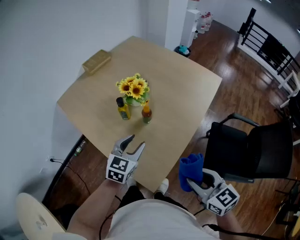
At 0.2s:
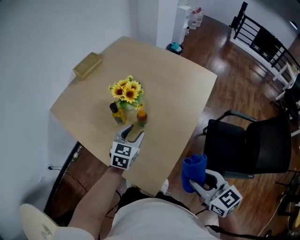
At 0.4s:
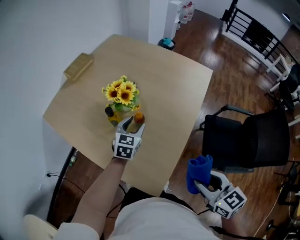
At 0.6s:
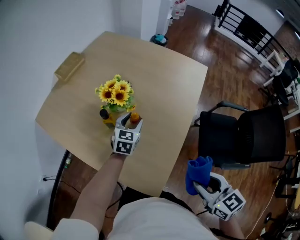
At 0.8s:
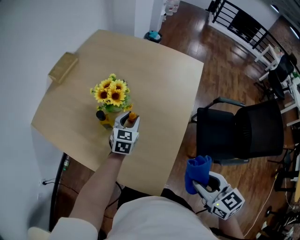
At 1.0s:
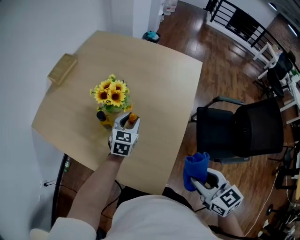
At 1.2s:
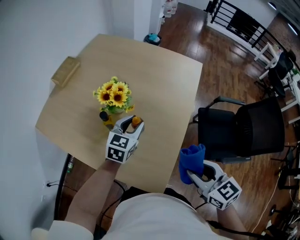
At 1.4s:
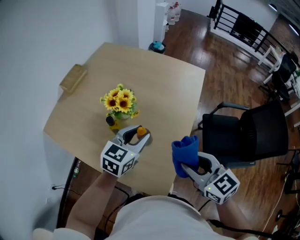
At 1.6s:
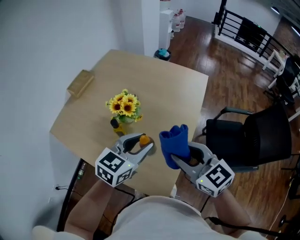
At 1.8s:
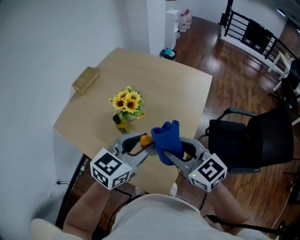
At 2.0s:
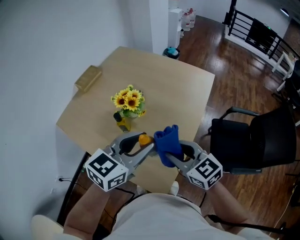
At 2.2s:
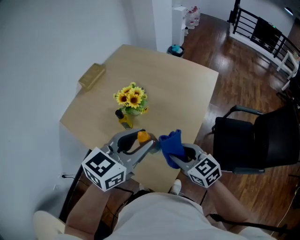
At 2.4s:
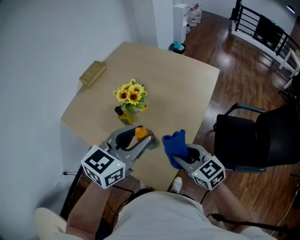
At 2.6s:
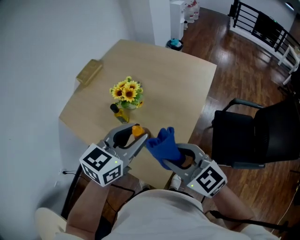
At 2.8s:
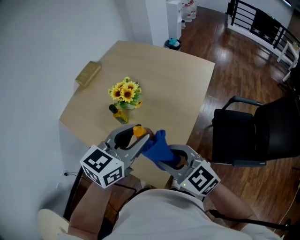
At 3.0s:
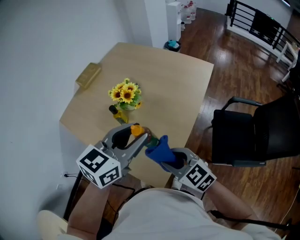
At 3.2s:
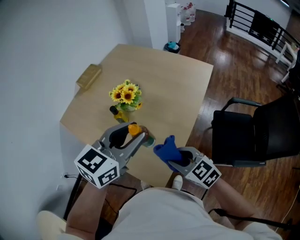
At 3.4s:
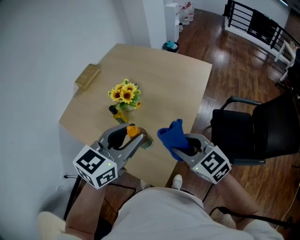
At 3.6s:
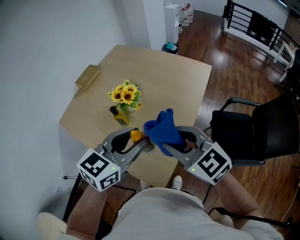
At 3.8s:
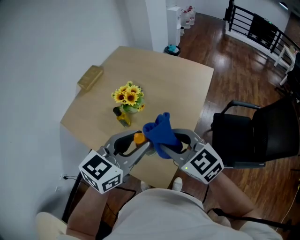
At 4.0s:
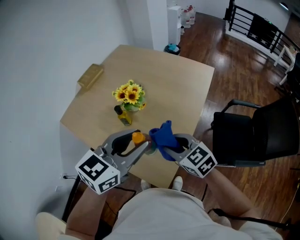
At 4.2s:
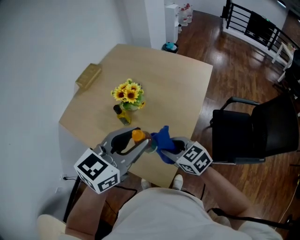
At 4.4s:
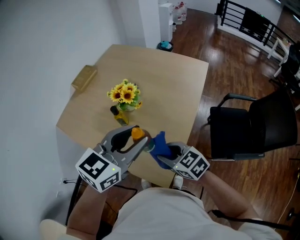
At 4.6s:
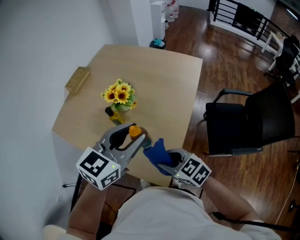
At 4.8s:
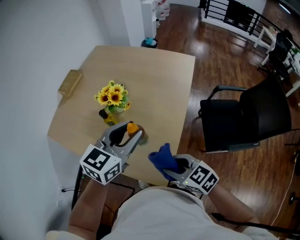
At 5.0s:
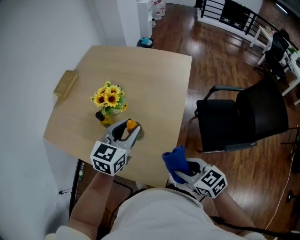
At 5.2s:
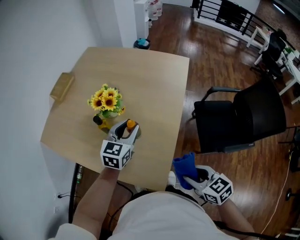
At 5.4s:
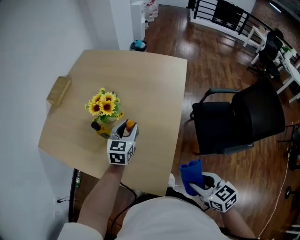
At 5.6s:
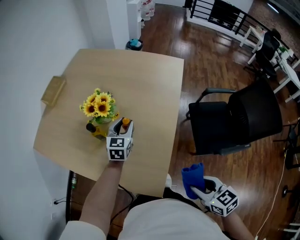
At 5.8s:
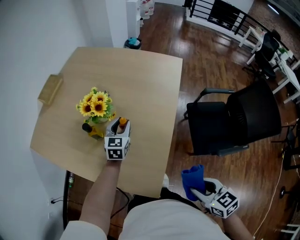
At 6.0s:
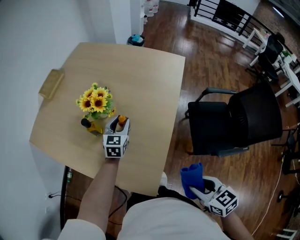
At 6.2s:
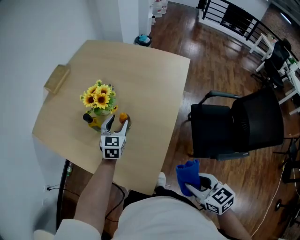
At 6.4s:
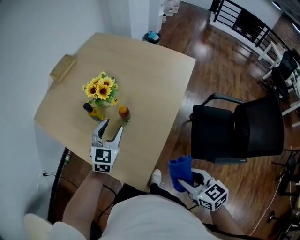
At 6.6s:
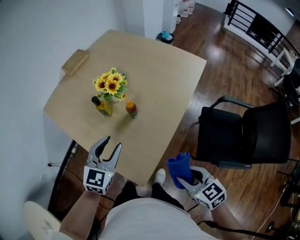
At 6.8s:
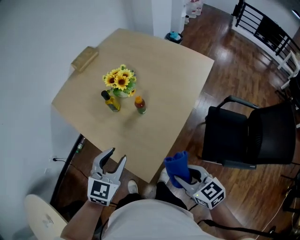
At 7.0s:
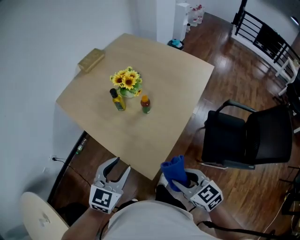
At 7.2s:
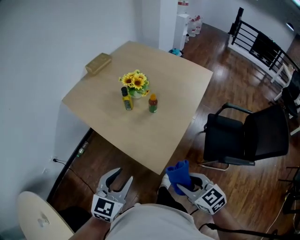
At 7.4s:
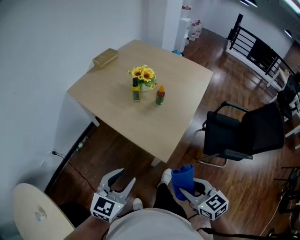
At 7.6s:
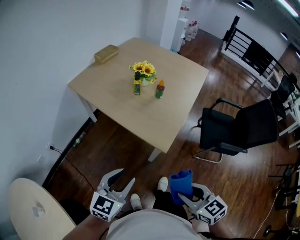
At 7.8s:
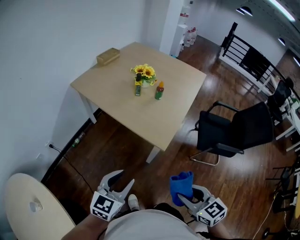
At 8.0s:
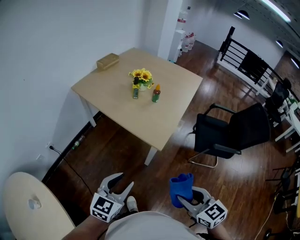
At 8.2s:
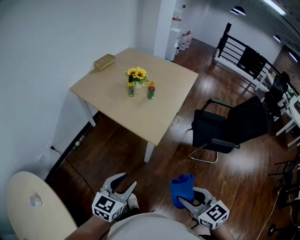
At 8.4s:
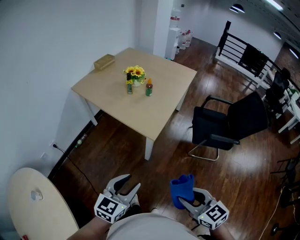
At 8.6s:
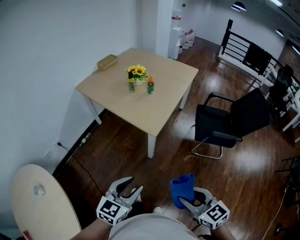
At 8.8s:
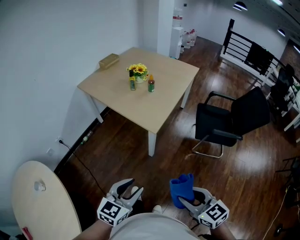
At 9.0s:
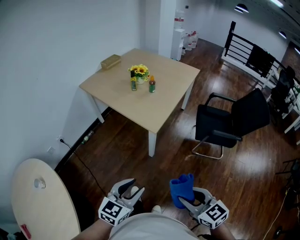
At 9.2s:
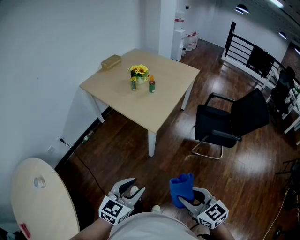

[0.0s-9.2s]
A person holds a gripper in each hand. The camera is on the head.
0.0s to 1.6s: The left gripper shifts about 10 cm upward, and turns by some 30 degrees. Meanwhile the right gripper moves forward, to the left and upward, some 20 cm.
1.6s to 3.0s: The right gripper swings up and down, some 10 cm each way, with 2 reversals. Meanwhile the left gripper is displaced upward and backward by approximately 10 cm.
3.0s to 4.6s: The right gripper travels upward and back again, roughly 10 cm each way.
4.6s to 6.2s: The right gripper heads to the right and backward, covering about 20 cm, and rotates approximately 20 degrees, while the left gripper goes about 30 cm downward and forward, changes its angle by roughly 30 degrees, and opens up.
6.2s to 7.6s: The right gripper goes approximately 30 cm backward and to the left. Meanwhile the left gripper moves backward and to the left, some 60 cm.
7.6s to 9.2s: The left gripper goes approximately 25 cm backward and to the right; the right gripper shifts roughly 20 cm backward.

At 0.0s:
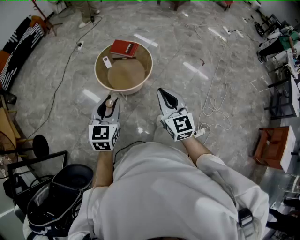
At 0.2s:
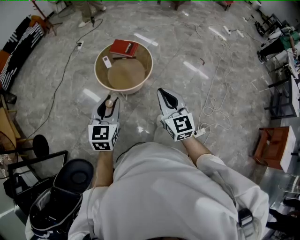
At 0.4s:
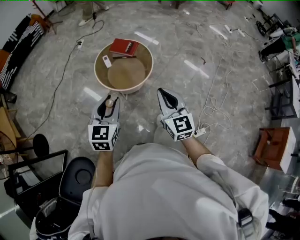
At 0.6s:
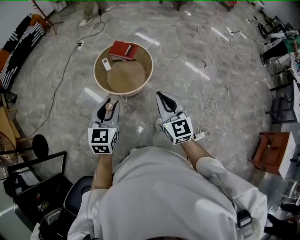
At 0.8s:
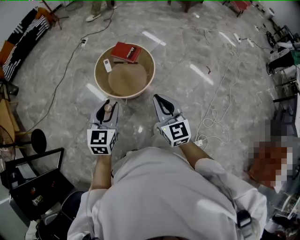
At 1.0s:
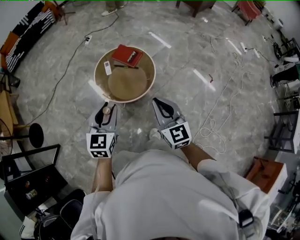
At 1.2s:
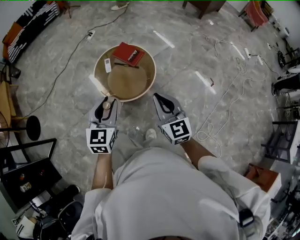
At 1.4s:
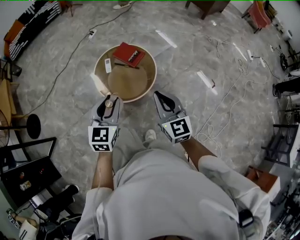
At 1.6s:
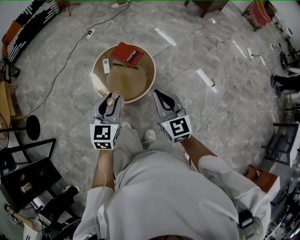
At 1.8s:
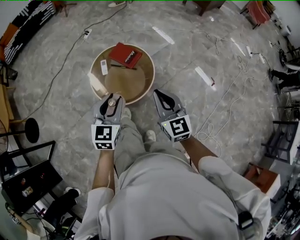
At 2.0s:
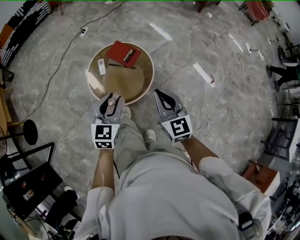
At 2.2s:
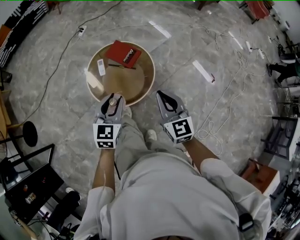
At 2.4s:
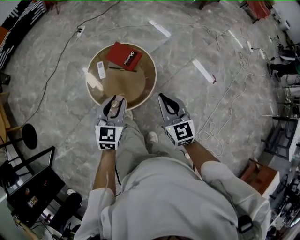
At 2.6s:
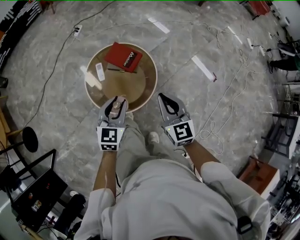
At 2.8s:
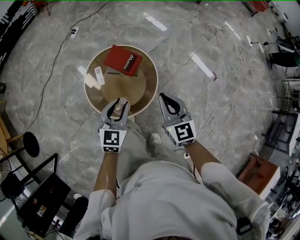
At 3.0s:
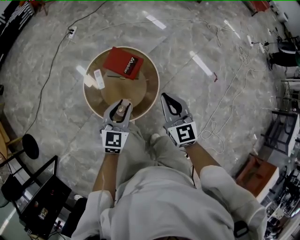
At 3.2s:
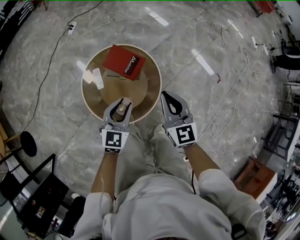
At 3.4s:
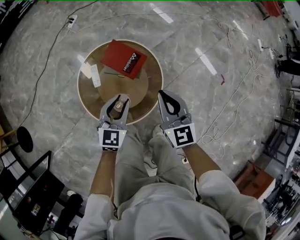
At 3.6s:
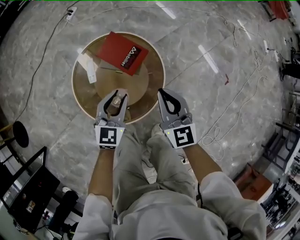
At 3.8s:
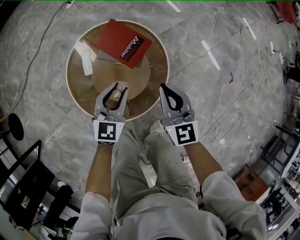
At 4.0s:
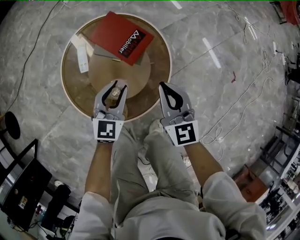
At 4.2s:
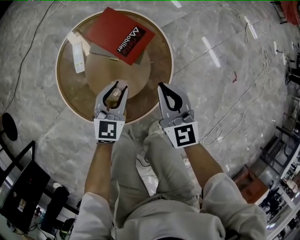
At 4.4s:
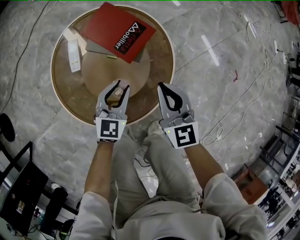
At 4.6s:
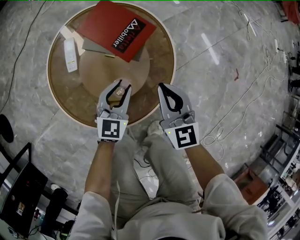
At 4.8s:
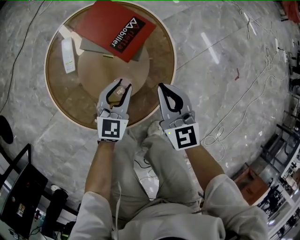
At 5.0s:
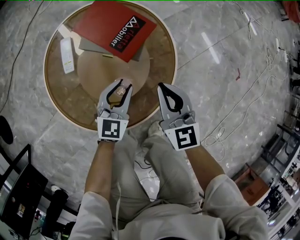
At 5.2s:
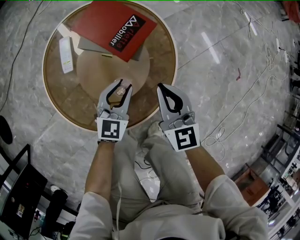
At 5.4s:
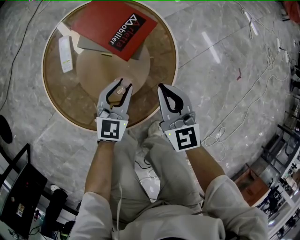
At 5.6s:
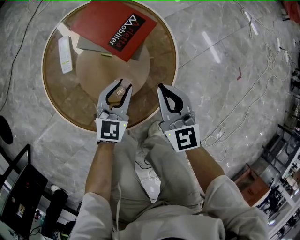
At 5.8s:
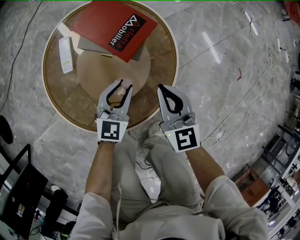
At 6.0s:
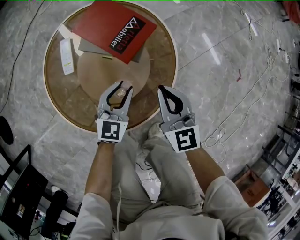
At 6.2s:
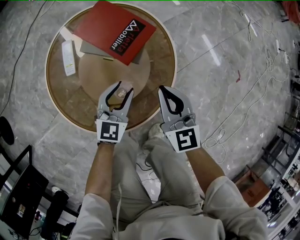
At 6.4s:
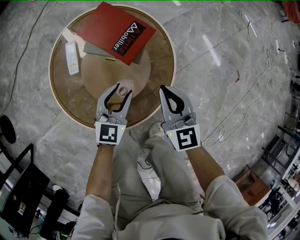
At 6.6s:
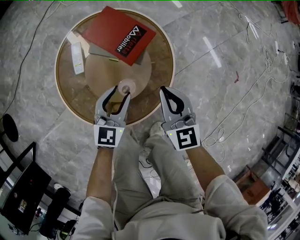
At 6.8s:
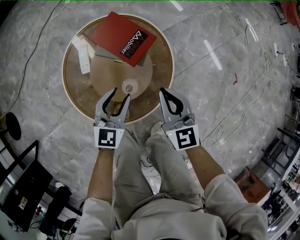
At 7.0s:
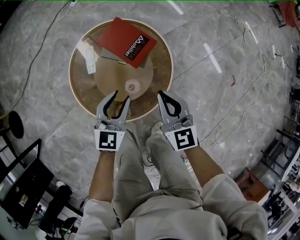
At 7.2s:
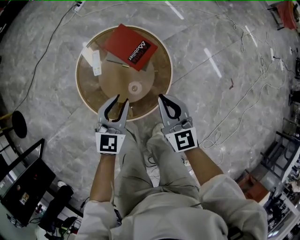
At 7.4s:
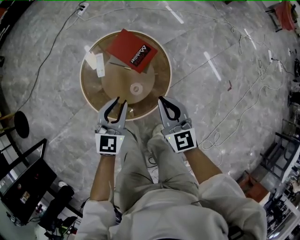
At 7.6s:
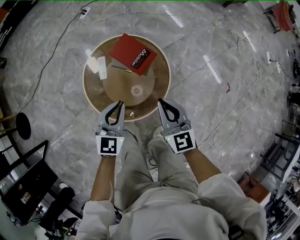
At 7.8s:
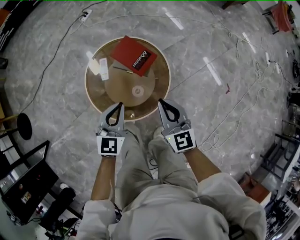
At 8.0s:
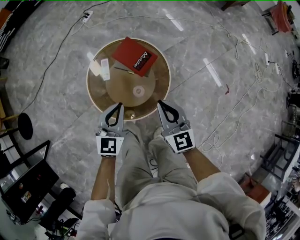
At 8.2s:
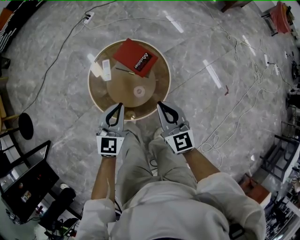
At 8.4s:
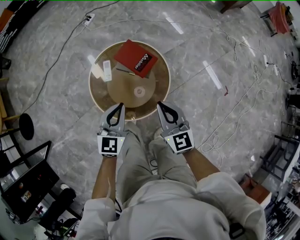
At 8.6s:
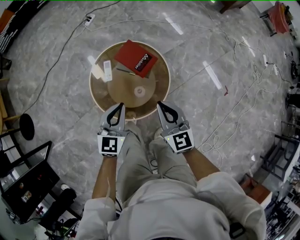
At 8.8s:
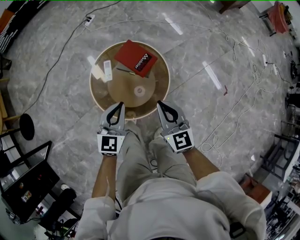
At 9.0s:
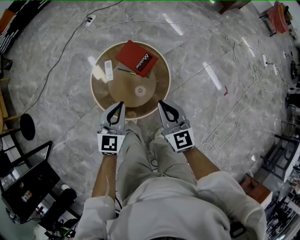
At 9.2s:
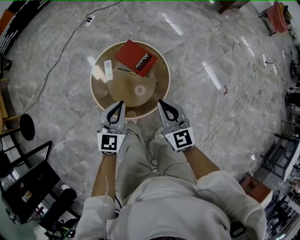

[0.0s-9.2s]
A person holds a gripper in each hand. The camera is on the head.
0.0s to 1.6s: Both grippers travel together forward and to the right, some 25 cm.
1.6s to 3.0s: The two grippers go roughly 25 cm forward and downward.
3.0s to 4.6s: The two grippers go roughly 35 cm downward.
4.6s to 6.2s: The grippers stay close to where they were, moving slightly.
6.2s to 7.6s: The grippers both shift upward by about 25 cm. The left gripper closes.
7.6s to 9.2s: The left gripper goes some 5 cm upward. The right gripper changes place by some 5 cm.

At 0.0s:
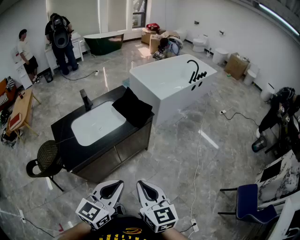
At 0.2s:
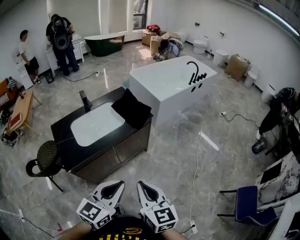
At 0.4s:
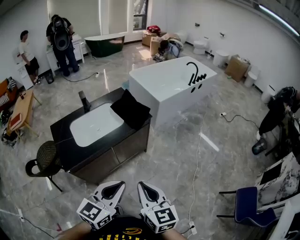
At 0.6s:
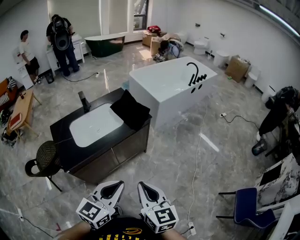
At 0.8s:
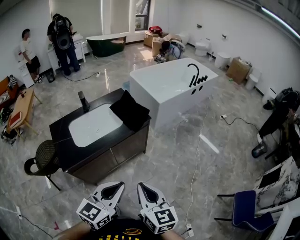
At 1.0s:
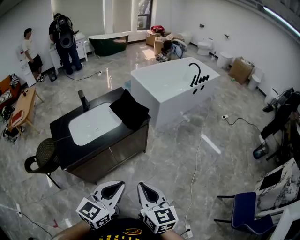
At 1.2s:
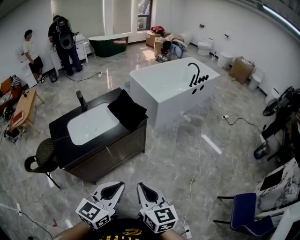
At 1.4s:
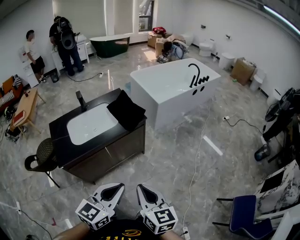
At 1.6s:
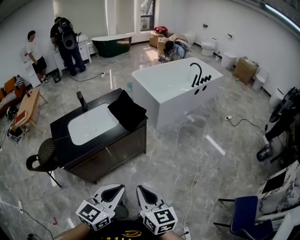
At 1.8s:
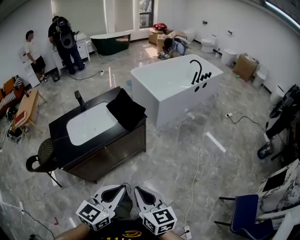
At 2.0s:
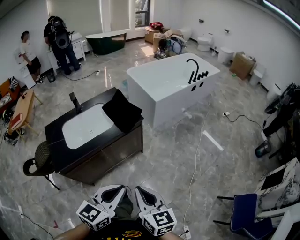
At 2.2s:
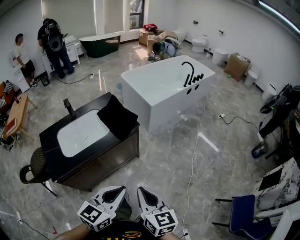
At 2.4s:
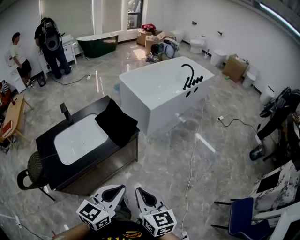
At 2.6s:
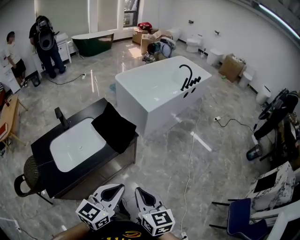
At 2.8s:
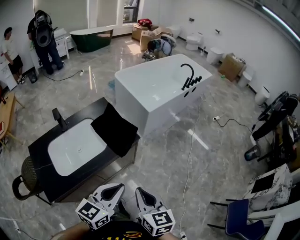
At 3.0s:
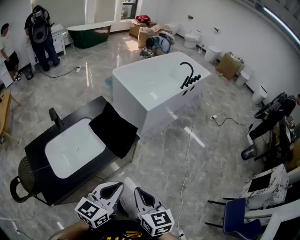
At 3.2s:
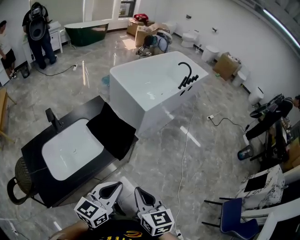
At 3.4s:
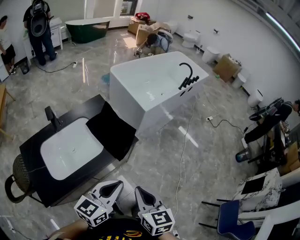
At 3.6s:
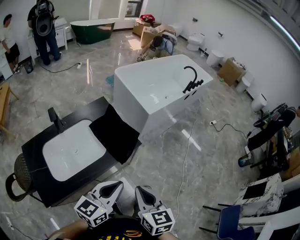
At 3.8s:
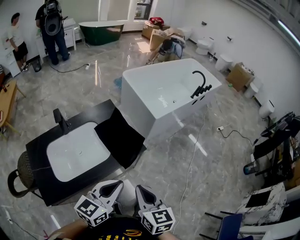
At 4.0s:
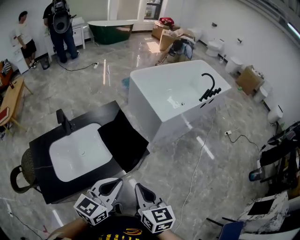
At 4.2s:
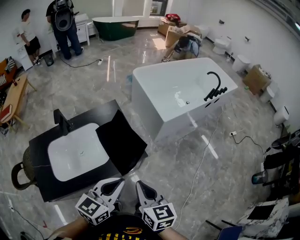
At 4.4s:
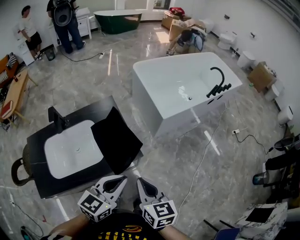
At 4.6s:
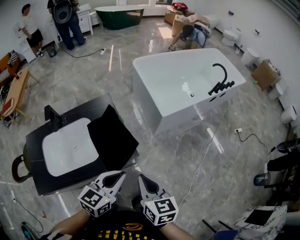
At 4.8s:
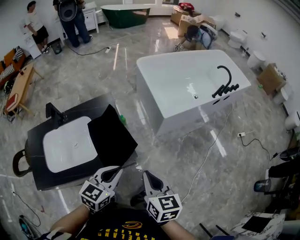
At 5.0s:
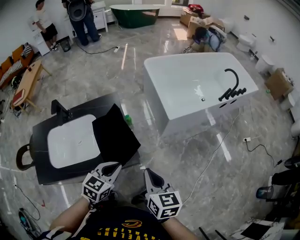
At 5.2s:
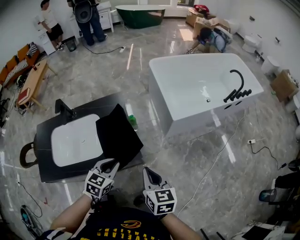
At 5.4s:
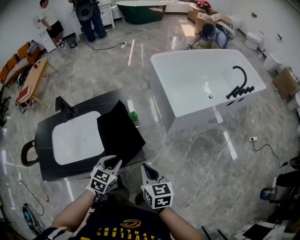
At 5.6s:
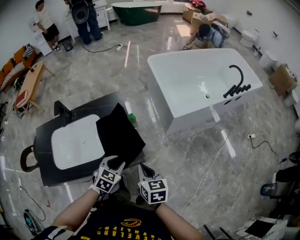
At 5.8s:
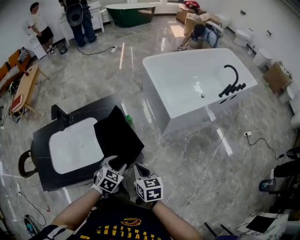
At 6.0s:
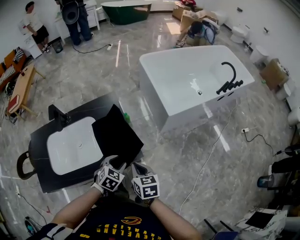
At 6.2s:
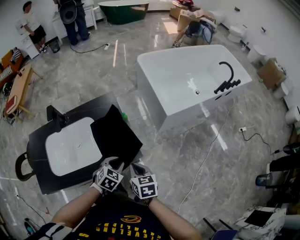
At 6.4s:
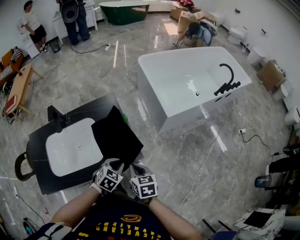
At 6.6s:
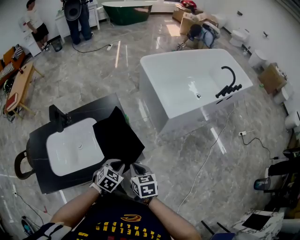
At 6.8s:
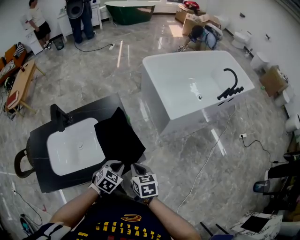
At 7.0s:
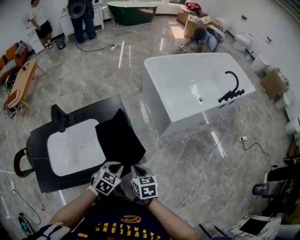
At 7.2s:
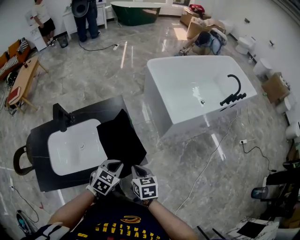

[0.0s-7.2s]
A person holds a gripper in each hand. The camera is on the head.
0.0s to 1.4s: Both grippers move to the right, about 10 cm.
1.4s to 2.8s: The two grippers go approximately 25 cm forward.
2.8s to 4.4s: The two grippers go roughly 20 cm forward.
4.4s to 5.8s: Both grippers travel together downward and forward, some 20 cm. The left gripper angles its fingers downward, by roughly 30 degrees, and opens up.
5.8s to 7.2s: The left gripper closes its fingers. The right gripper shifts by about 5 cm.
